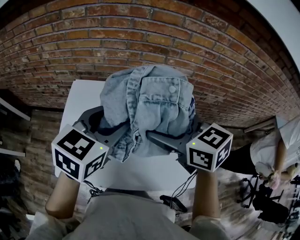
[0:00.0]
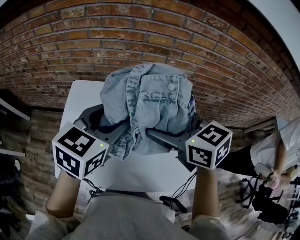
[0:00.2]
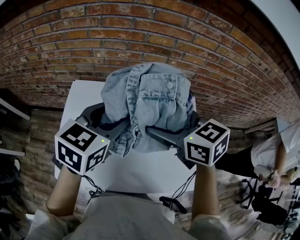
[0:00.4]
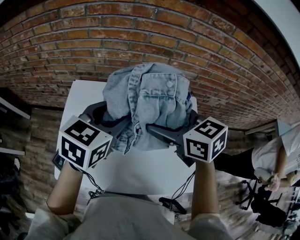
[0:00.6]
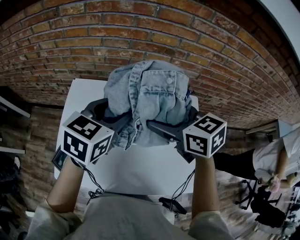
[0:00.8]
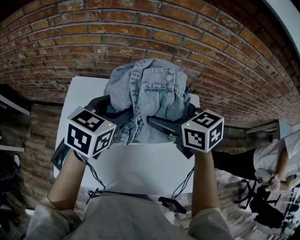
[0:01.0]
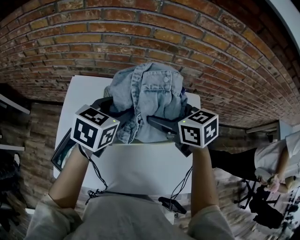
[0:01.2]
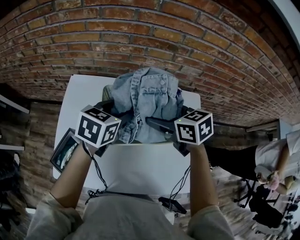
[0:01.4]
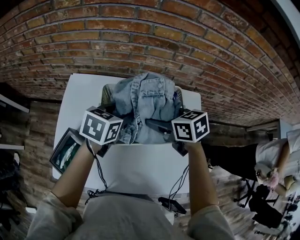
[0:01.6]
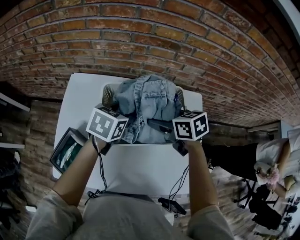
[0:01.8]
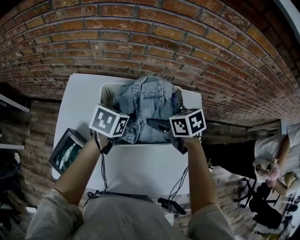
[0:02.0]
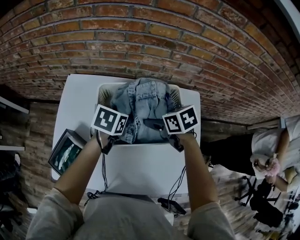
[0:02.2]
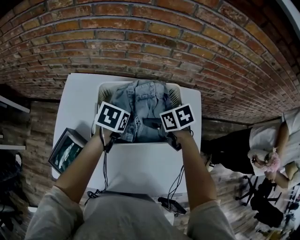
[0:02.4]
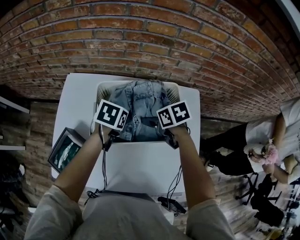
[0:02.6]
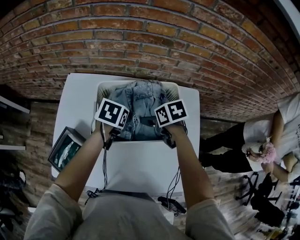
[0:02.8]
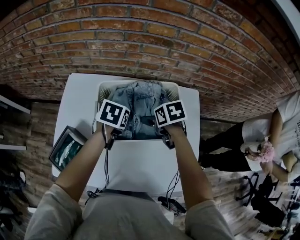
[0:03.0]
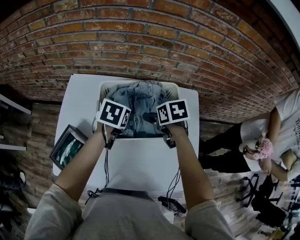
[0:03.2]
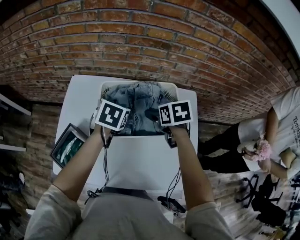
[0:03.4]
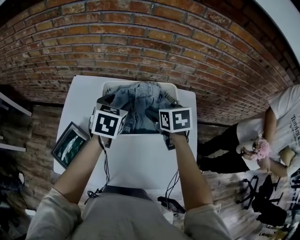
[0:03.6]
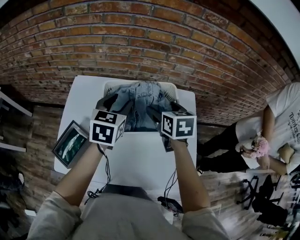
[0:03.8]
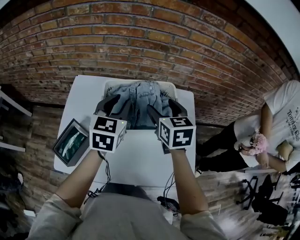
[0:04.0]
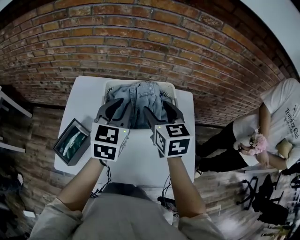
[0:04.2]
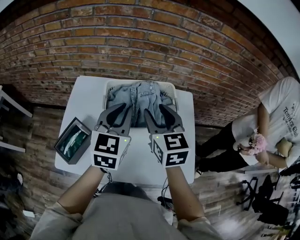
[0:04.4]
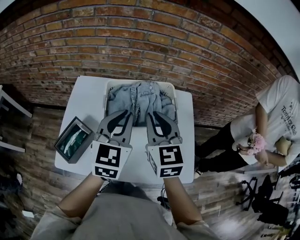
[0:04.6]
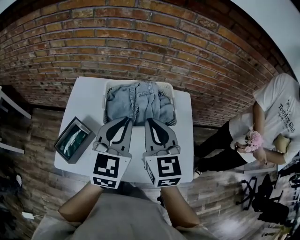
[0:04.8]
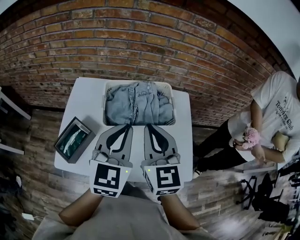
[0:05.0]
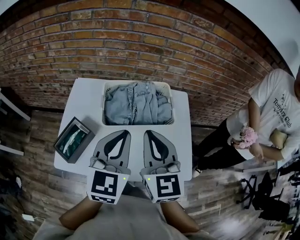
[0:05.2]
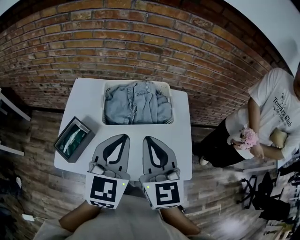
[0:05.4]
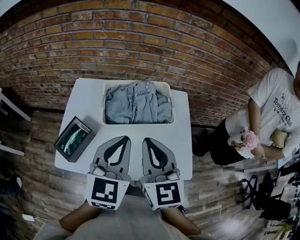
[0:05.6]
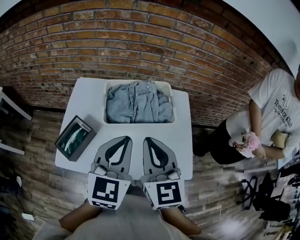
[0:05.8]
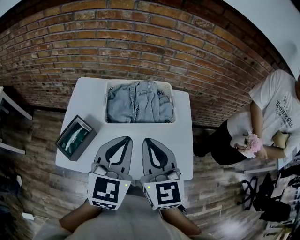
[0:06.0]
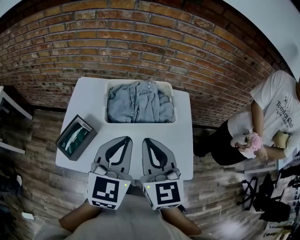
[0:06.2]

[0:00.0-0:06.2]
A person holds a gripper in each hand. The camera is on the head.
0:00.0 to 0:01.6: Both grippers travel together downward and forward, about 20 cm. The left gripper changes its angle by approximately 20 degrees.
0:01.6 to 0:03.2: The grippers both shift downward by approximately 5 cm. The right gripper swivels some 20 degrees.
0:03.2 to 0:04.6: The grippers both shift upward and backward by about 25 cm. The left gripper tilts its fingers some 40 degrees upward, and closes up. Meanwhile the right gripper tips its fingers upward by roughly 50 degrees, and closes its fingers.
0:04.6 to 0:06.2: Both grippers move backward, approximately 10 cm.

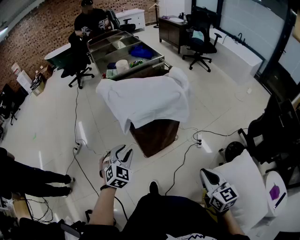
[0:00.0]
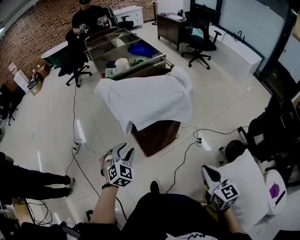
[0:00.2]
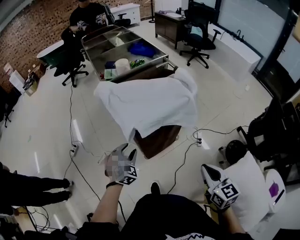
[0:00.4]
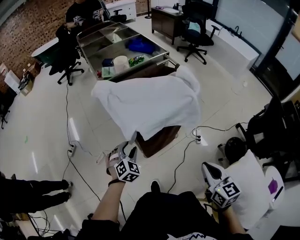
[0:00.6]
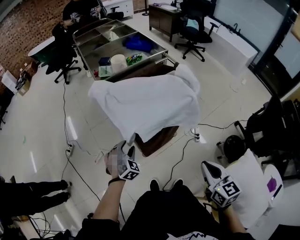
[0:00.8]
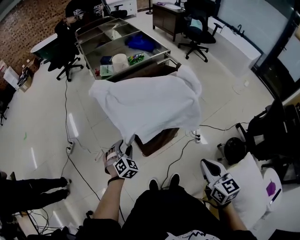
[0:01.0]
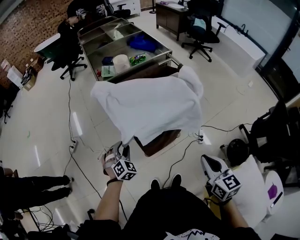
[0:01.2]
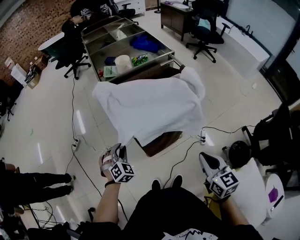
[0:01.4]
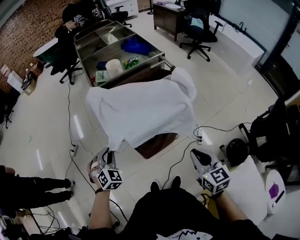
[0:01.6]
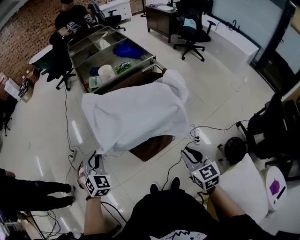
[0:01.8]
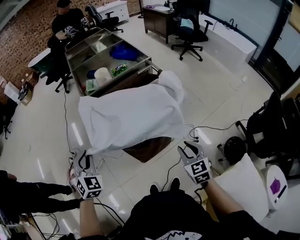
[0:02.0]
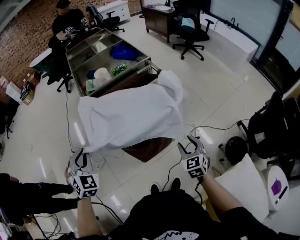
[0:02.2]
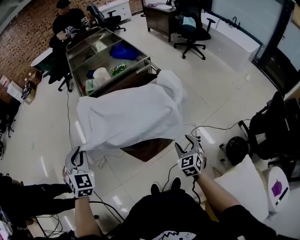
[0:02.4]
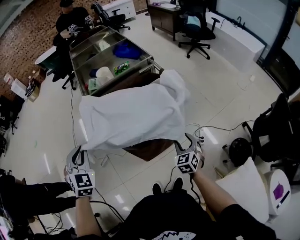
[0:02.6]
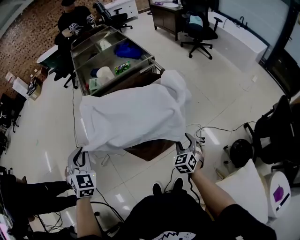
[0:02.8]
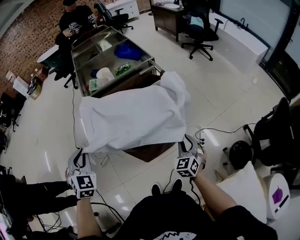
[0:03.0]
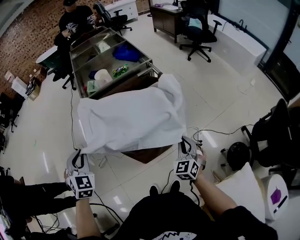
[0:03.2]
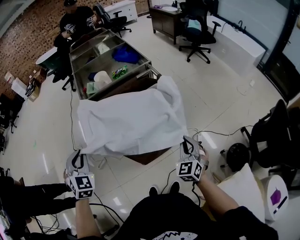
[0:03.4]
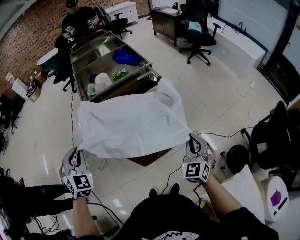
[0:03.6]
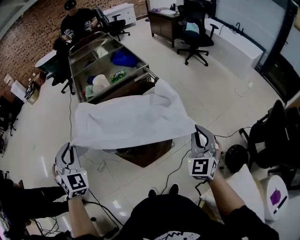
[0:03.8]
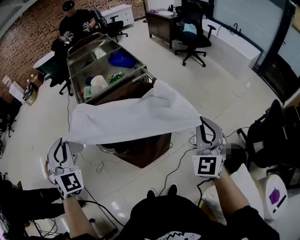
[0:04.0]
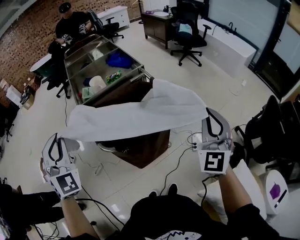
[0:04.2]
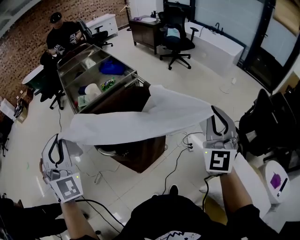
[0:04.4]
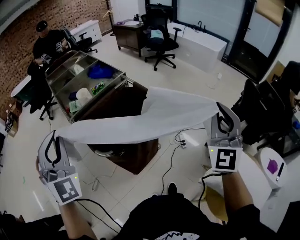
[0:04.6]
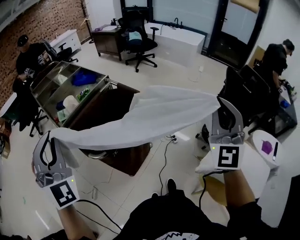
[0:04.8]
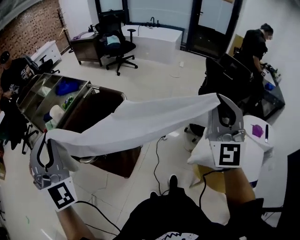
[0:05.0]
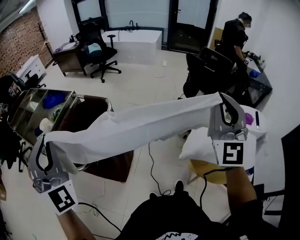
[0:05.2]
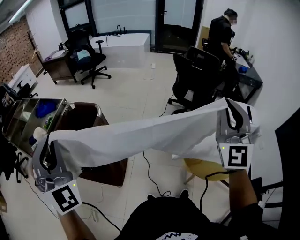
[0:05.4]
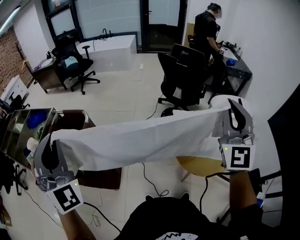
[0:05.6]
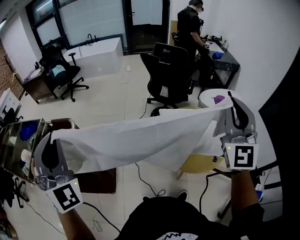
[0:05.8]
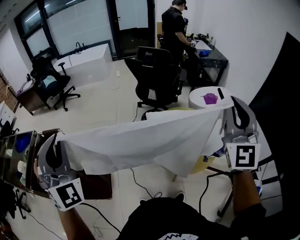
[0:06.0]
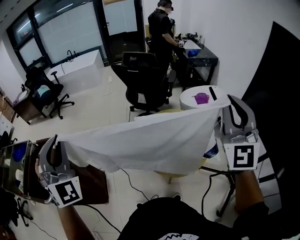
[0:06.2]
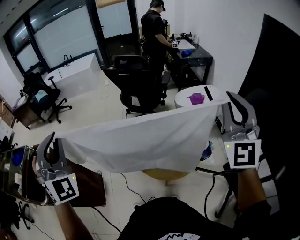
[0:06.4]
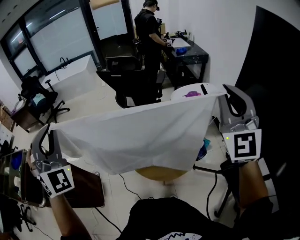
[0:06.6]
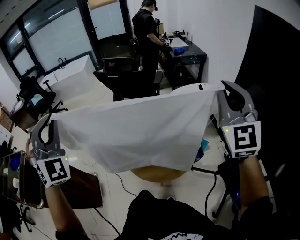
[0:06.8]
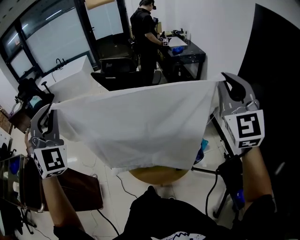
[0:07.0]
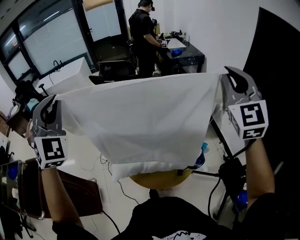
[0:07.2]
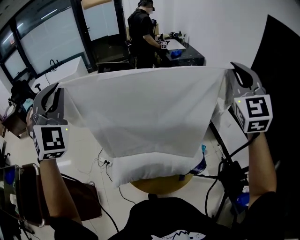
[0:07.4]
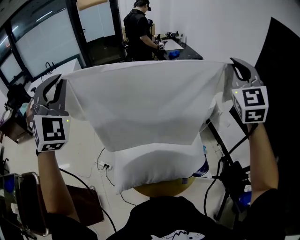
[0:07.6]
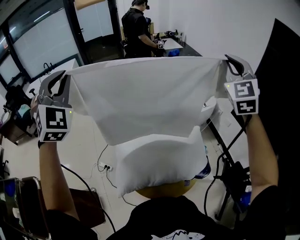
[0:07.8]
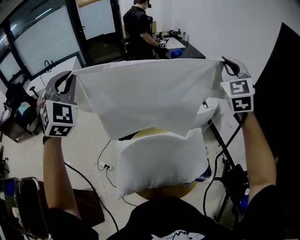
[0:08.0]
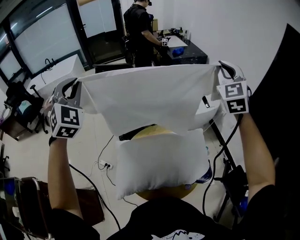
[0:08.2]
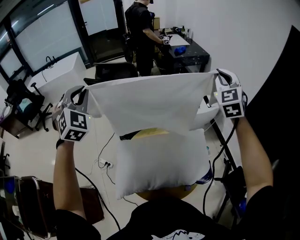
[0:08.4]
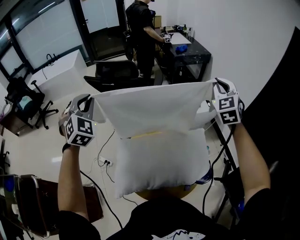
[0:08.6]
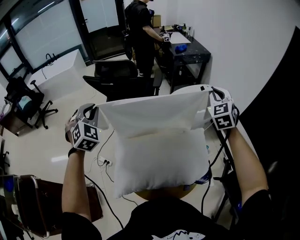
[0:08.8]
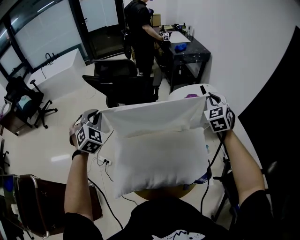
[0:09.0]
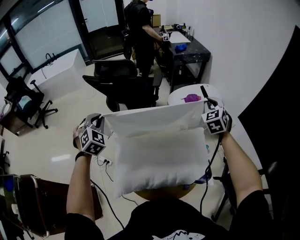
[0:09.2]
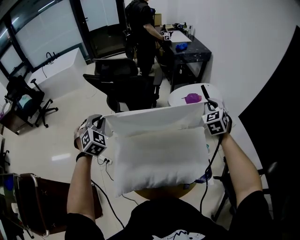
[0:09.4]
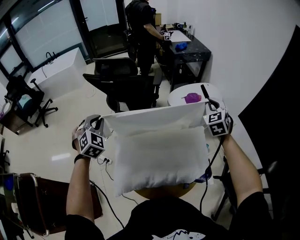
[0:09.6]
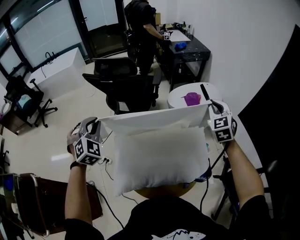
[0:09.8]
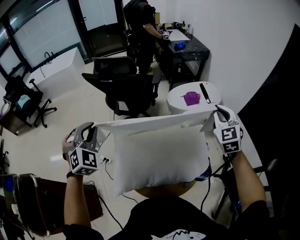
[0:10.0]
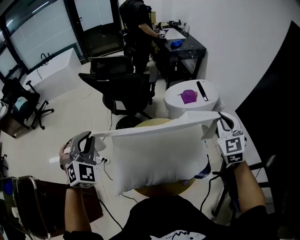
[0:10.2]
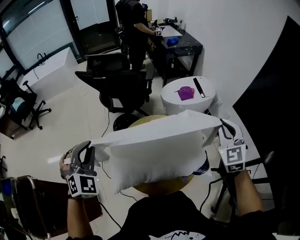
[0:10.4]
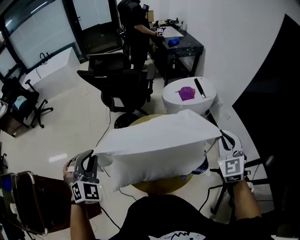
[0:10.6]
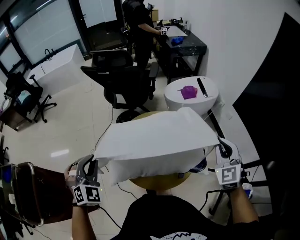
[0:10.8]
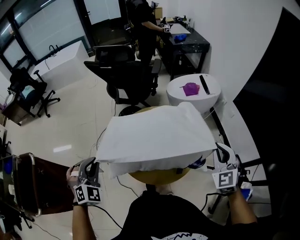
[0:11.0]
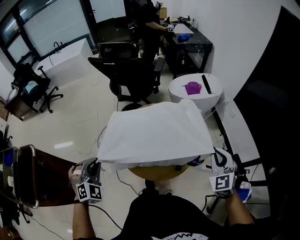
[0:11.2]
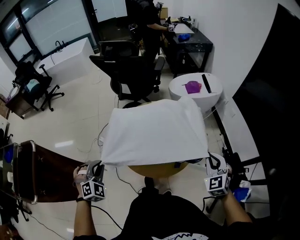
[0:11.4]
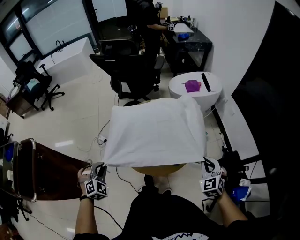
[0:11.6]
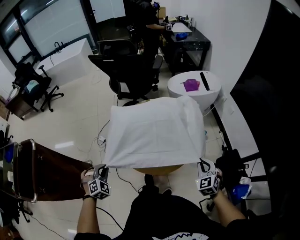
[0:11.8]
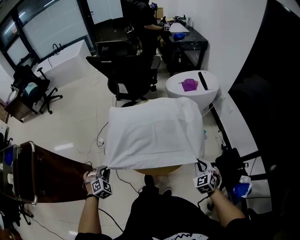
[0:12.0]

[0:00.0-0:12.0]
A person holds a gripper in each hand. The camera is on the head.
0:00.0 to 0:01.6: The left gripper travels forward and to the left by approximately 15 cm, and closes its fingers. Meanwhile the right gripper heads forward, covering approximately 20 cm.
0:01.6 to 0:03.0: The right gripper goes roughly 15 cm downward, forward and to the right, turns by approximately 40 degrees, and opens its fingers, while the left gripper shifts some 15 cm upward.
0:03.0 to 0:04.4: The left gripper goes about 20 cm upward, and swivels roughly 30 degrees; the right gripper travels upward by some 35 cm, tilts its fingers approximately 30 degrees upward, and closes its fingers.
0:04.4 to 0:06.0: The left gripper moves roughly 40 cm, and rotates about 60 degrees; the right gripper changes place by roughly 60 cm, and turns by about 50 degrees.
0:06.0 to 0:07.6: The left gripper shifts roughly 40 cm forward and to the right; the right gripper shifts roughly 30 cm to the right and forward.
0:07.6 to 0:09.0: The left gripper moves downward, some 30 cm, and tips its fingers downward by some 30 degrees; the right gripper goes approximately 30 cm downward and forward, and swivels roughly 30 degrees.
0:09.0 to 0:10.4: The two grippers go about 20 cm backward.
0:10.4 to 0:12.0: The grippers both shift downward and backward by about 35 cm. The right gripper rotates about 30 degrees, while the left gripper rotates roughly 30 degrees.

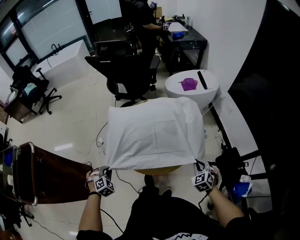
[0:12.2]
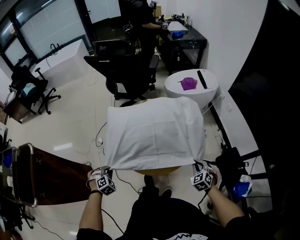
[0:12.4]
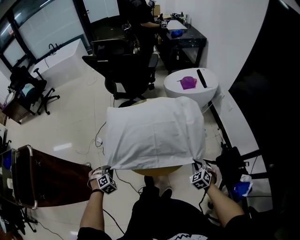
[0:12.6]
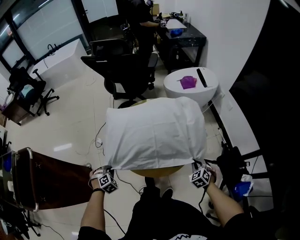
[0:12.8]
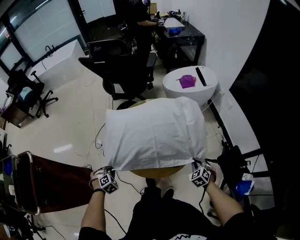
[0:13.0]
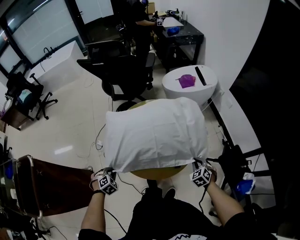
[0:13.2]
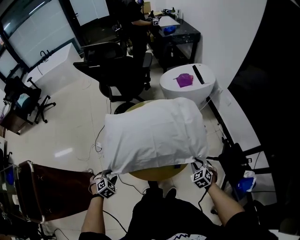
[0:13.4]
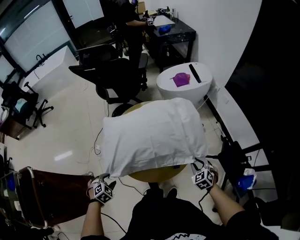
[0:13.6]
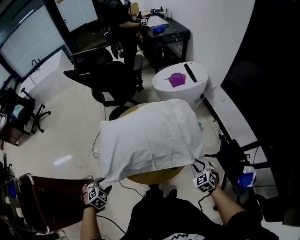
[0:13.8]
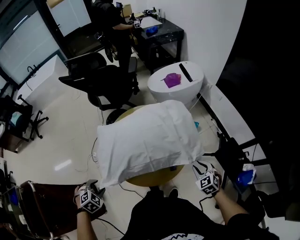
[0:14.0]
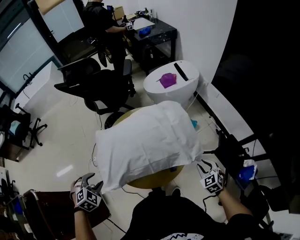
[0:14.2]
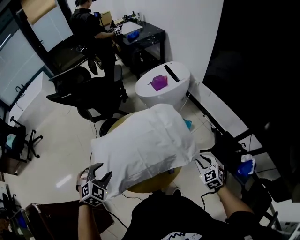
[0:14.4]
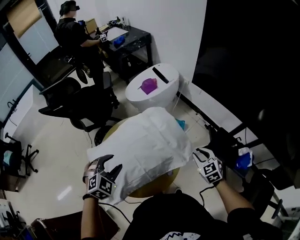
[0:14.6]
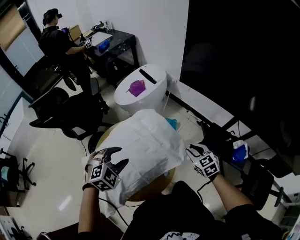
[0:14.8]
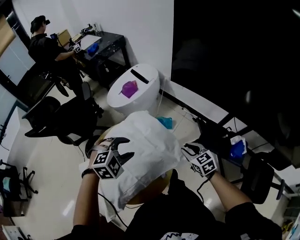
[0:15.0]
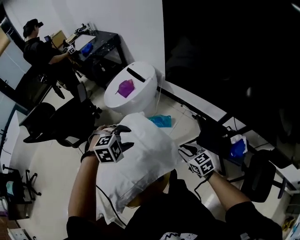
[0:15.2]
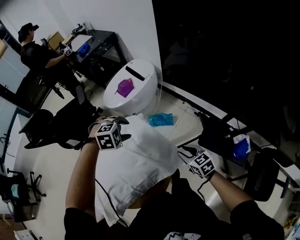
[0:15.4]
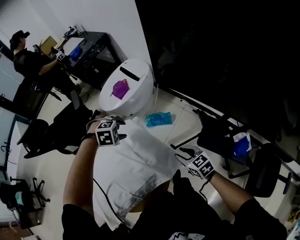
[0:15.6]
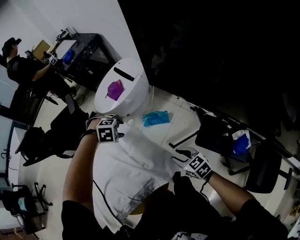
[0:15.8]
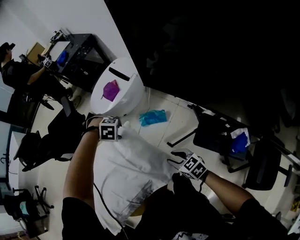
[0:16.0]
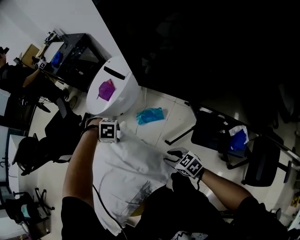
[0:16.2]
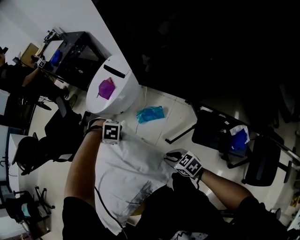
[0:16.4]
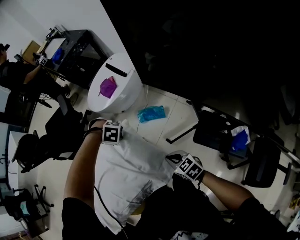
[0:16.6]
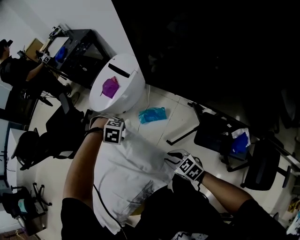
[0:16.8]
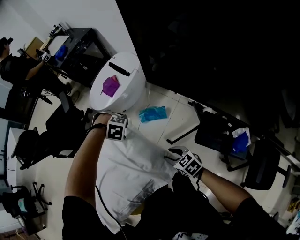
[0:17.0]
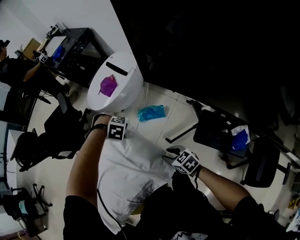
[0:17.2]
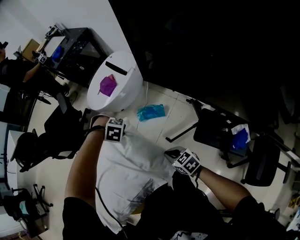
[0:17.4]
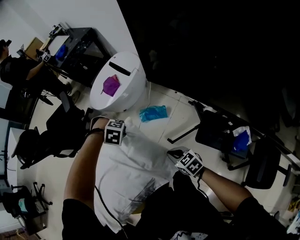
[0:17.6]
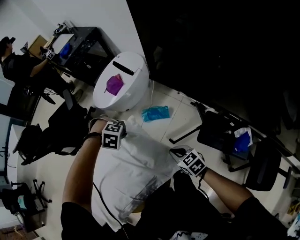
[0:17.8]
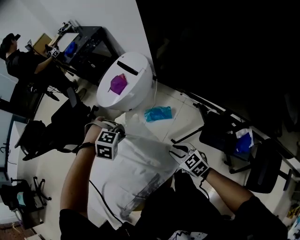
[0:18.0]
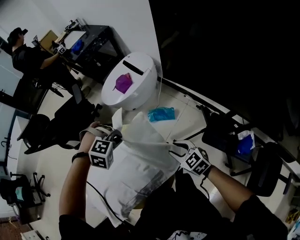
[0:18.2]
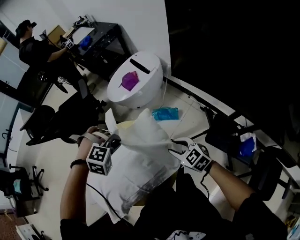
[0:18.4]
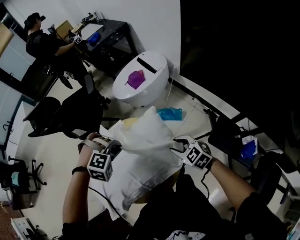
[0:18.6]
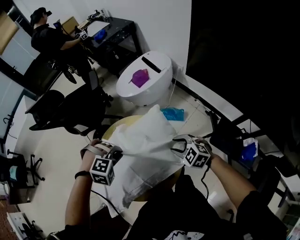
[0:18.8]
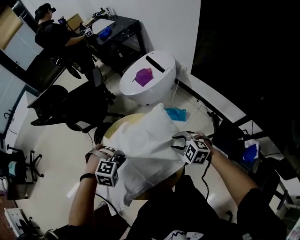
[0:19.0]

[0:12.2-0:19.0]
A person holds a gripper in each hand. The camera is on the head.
0:12.2 to 0:13.6: The left gripper opens; the right gripper opens up.
0:13.6 to 0:15.0: The right gripper is displaced upward by some 10 cm, and turns by about 40 degrees. The left gripper changes place by approximately 50 cm, and rotates around the line of its fingers by approximately 50 degrees, clockwise from behind.
0:15.0 to 0:16.2: The left gripper moves about 25 cm, and rotates roughly 50 degrees; the right gripper goes roughly 10 cm downward, and swivels roughly 20 degrees.
0:16.2 to 0:17.6: The left gripper closes, while the right gripper closes up.
0:17.6 to 0:19.0: The left gripper shifts by approximately 30 cm, and swivels approximately 20 degrees. Meanwhile the right gripper moves roughly 15 cm, twists some 50 degrees counterclockwise, seen from behind, and opens.
